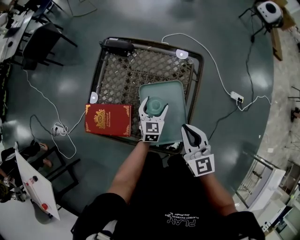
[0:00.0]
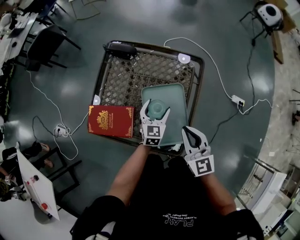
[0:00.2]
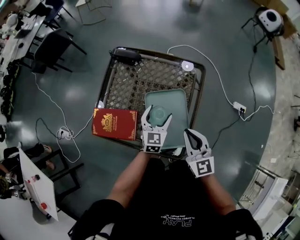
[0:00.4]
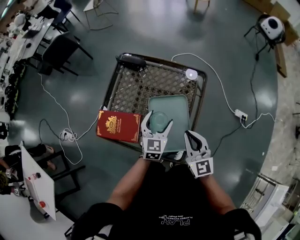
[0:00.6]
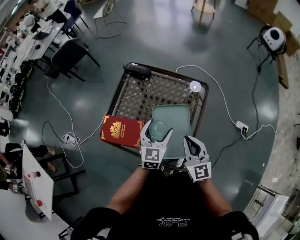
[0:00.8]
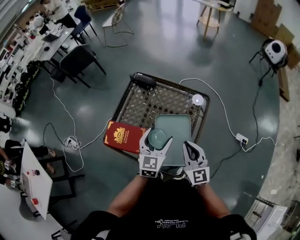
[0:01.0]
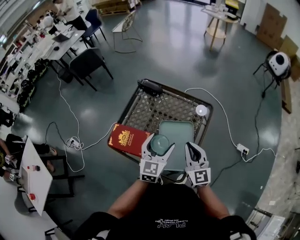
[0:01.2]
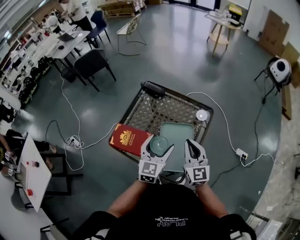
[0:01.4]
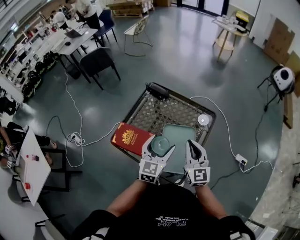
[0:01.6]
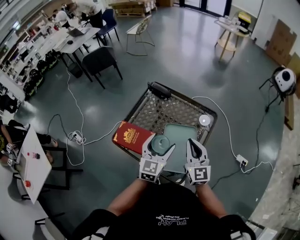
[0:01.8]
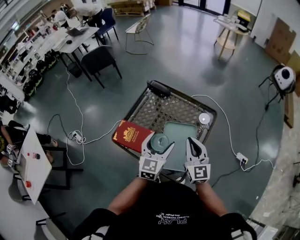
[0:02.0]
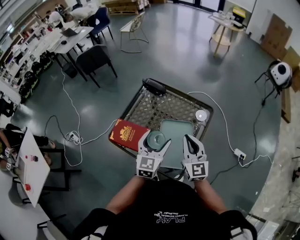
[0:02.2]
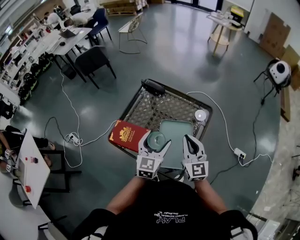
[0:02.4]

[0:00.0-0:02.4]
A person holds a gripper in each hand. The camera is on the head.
0:00.0 to 0:01.2: The left gripper moves upward, roughly 25 cm; the right gripper goes about 5 cm upward.
0:01.2 to 0:02.4: The grippers move only a little.

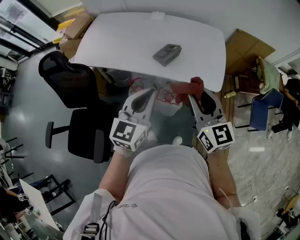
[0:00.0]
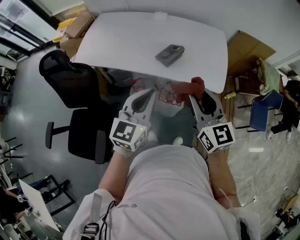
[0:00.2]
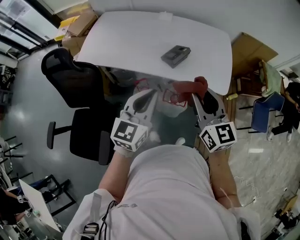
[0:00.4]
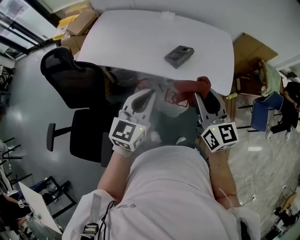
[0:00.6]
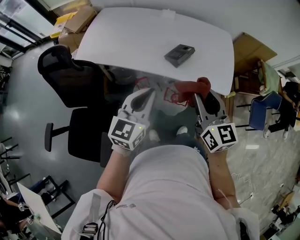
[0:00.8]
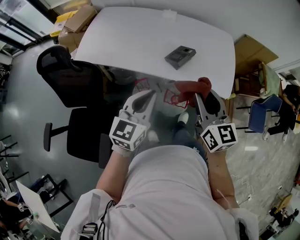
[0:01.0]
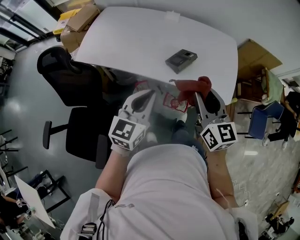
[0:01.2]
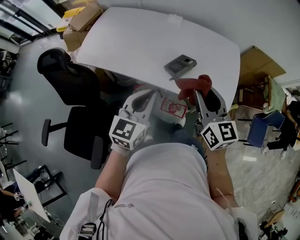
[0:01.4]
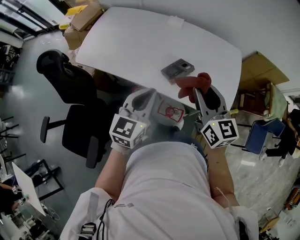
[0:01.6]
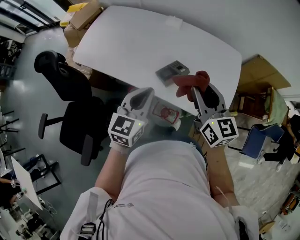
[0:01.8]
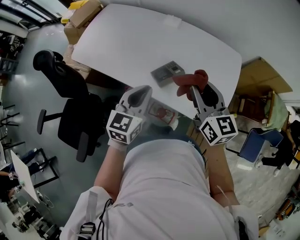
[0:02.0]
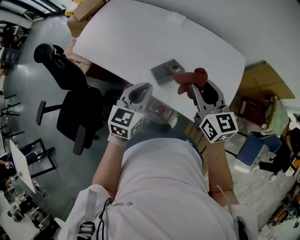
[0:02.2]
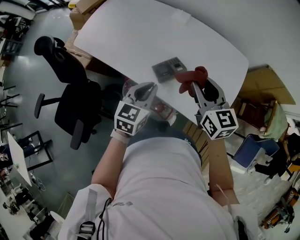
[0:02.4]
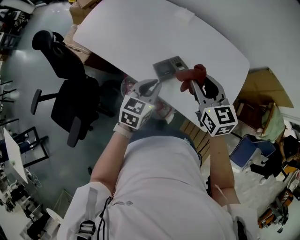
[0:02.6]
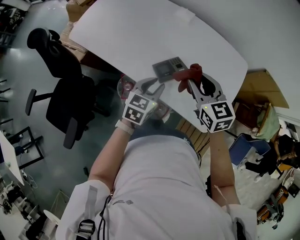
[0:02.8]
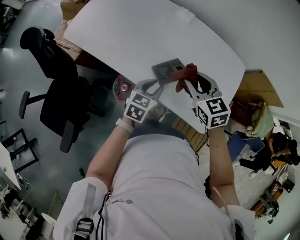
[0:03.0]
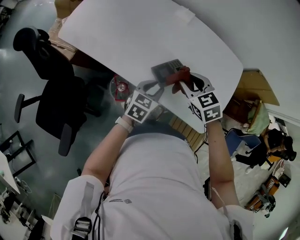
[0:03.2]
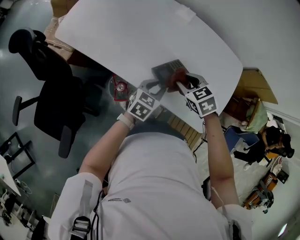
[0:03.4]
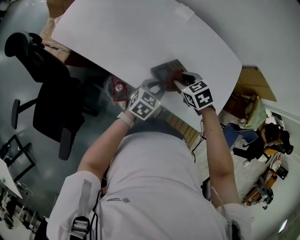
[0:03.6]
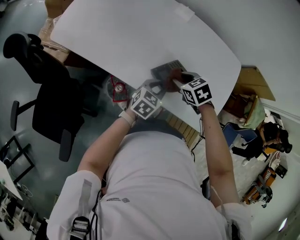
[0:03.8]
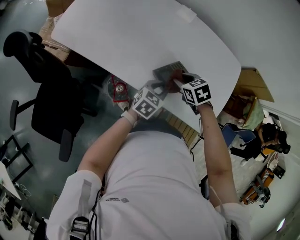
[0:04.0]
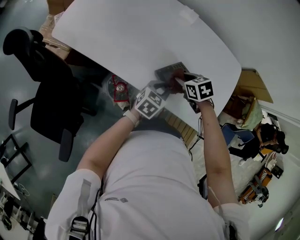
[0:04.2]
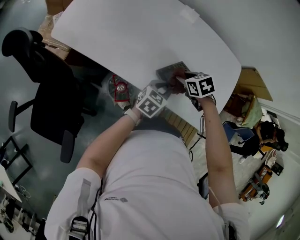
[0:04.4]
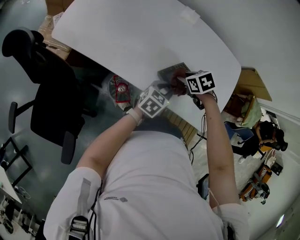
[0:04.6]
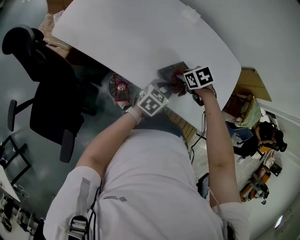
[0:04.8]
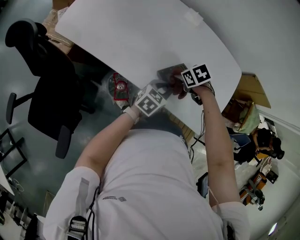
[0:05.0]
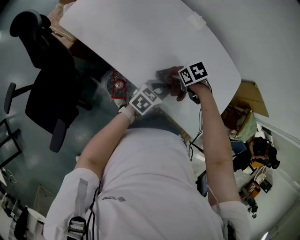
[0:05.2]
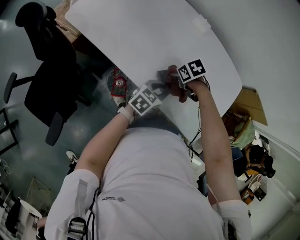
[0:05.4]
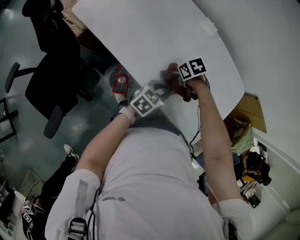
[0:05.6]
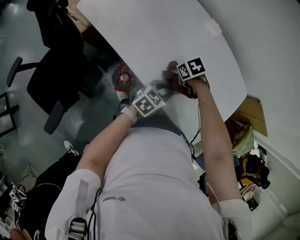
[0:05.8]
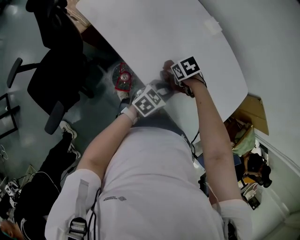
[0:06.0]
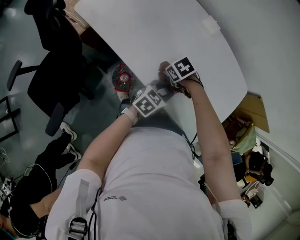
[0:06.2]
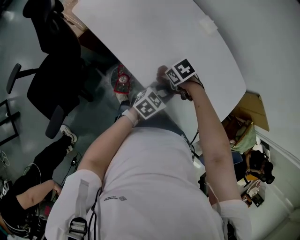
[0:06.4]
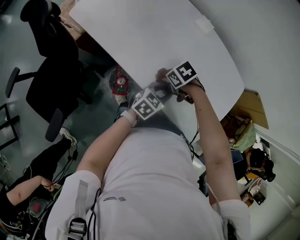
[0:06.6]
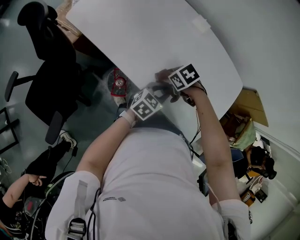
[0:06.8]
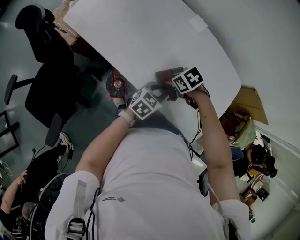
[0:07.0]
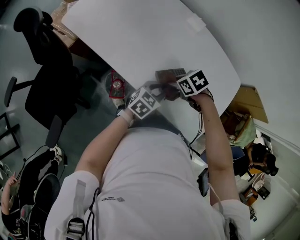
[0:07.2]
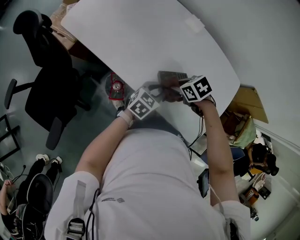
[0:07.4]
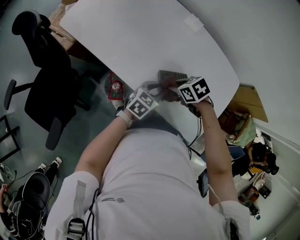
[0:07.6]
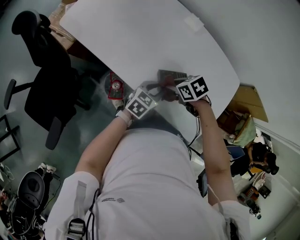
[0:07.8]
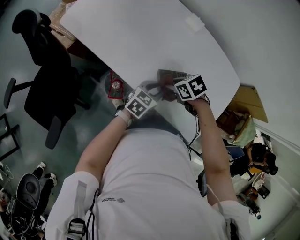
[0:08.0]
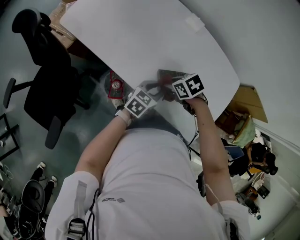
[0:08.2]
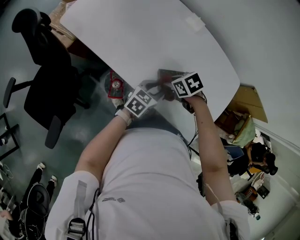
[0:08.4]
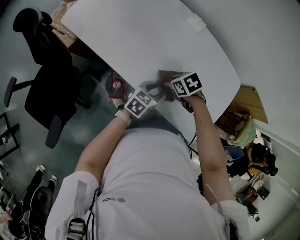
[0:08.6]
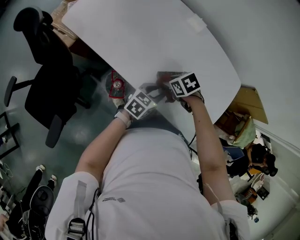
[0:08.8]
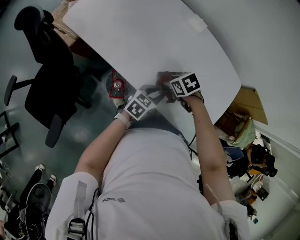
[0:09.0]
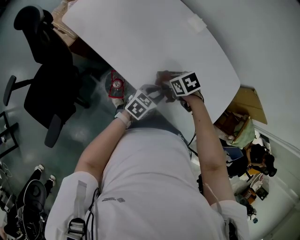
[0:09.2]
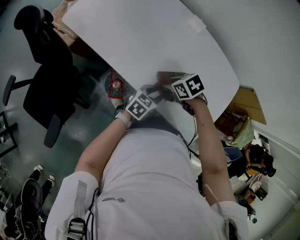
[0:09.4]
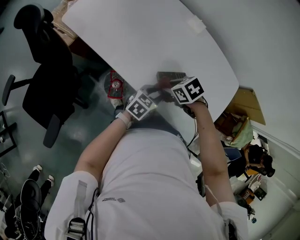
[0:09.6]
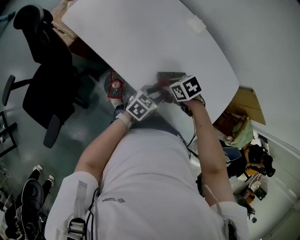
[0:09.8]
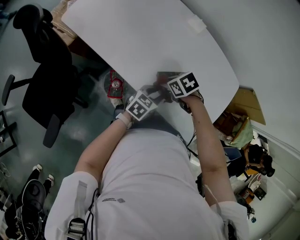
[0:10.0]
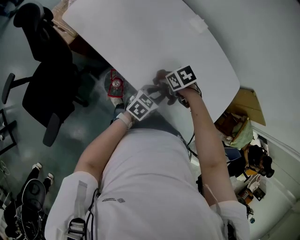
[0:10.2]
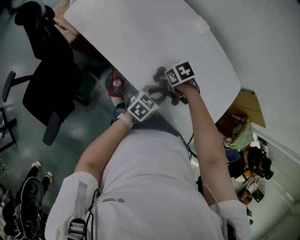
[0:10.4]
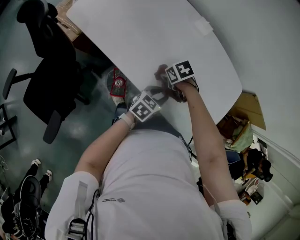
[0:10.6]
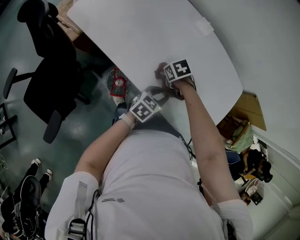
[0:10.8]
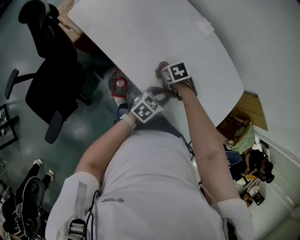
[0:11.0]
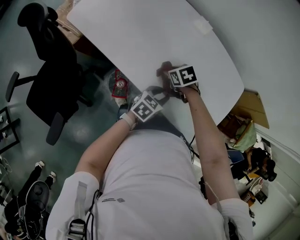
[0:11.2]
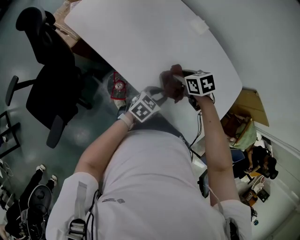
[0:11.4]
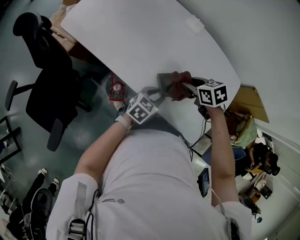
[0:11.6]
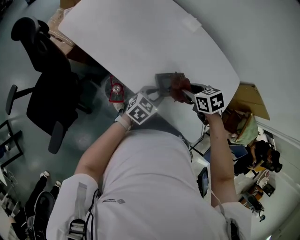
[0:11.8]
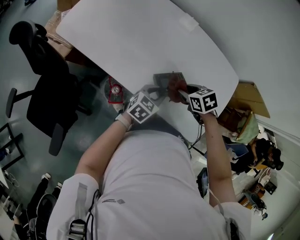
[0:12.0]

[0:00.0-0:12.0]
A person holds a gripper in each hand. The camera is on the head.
0:00.0 to 0:01.6: Both grippers move forward, roughly 15 cm.
0:01.6 to 0:03.0: The left gripper goes approximately 20 cm downward, forward and to the right, swivels roughly 20 degrees, and opens up; the right gripper travels forward and downward by roughly 15 cm, and changes its angle by about 40 degrees.
0:03.0 to 0:04.4: The right gripper heads downward, covering some 15 cm, and points its fingers roughly 30 degrees further downward; the left gripper shifts some 5 cm downward.
0:04.4 to 0:06.0: The right gripper ends up about 10 cm from where it was, and changes its angle by some 30 degrees.
0:06.0 to 0:07.6: The right gripper changes place by some 10 cm.
0:07.6 to 0:09.0: The grippers make only small movements.
0:09.0 to 0:10.4: The grippers stay close to where they were, moving slightly.
0:10.4 to 0:12.0: The right gripper ends up about 15 cm from where it was.

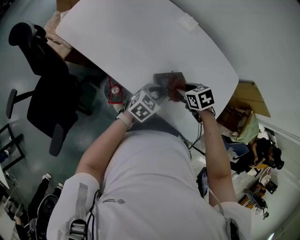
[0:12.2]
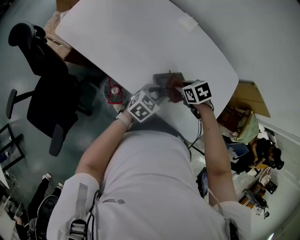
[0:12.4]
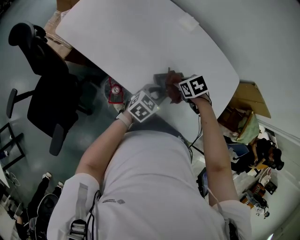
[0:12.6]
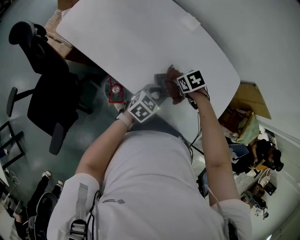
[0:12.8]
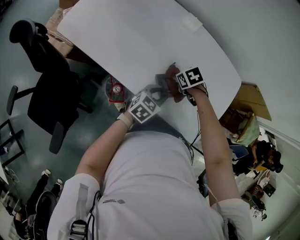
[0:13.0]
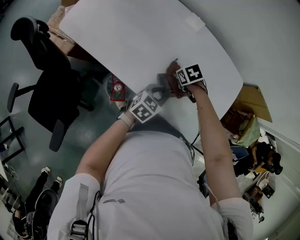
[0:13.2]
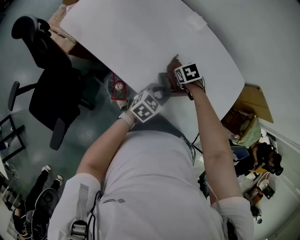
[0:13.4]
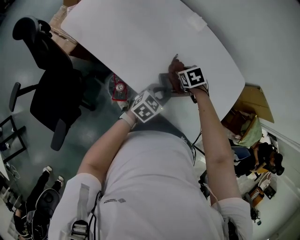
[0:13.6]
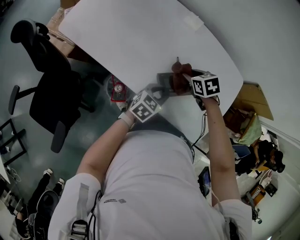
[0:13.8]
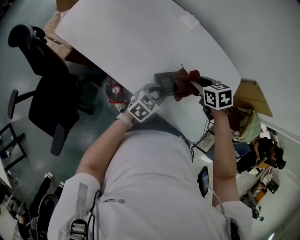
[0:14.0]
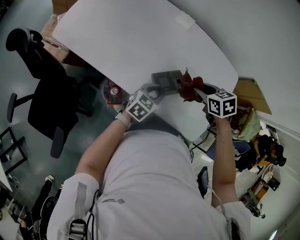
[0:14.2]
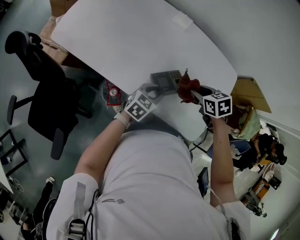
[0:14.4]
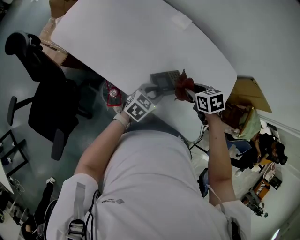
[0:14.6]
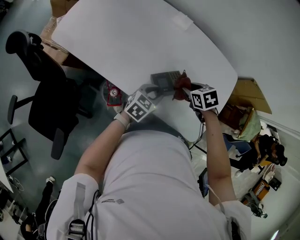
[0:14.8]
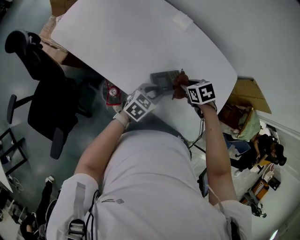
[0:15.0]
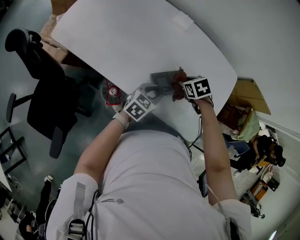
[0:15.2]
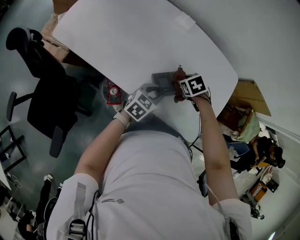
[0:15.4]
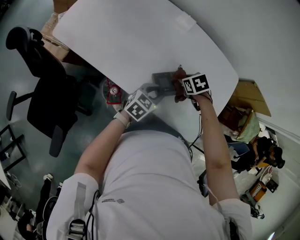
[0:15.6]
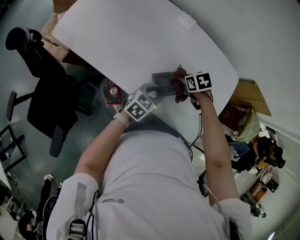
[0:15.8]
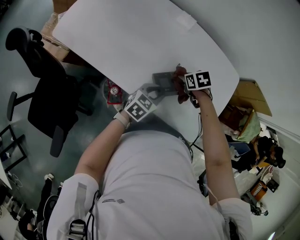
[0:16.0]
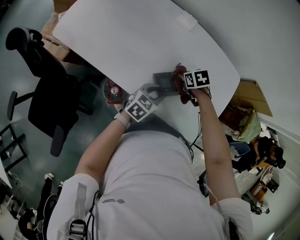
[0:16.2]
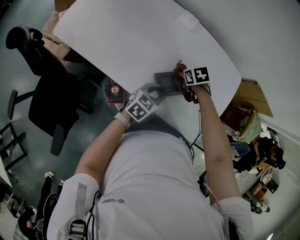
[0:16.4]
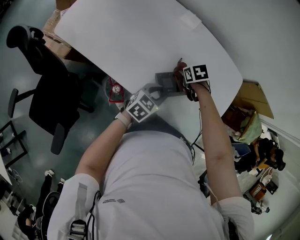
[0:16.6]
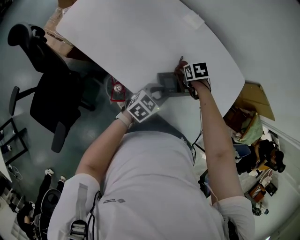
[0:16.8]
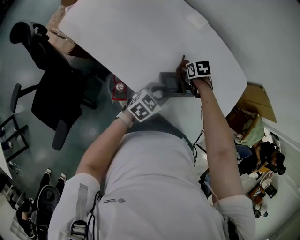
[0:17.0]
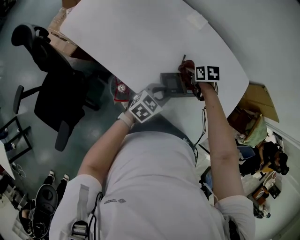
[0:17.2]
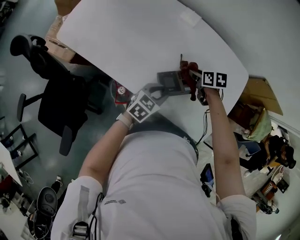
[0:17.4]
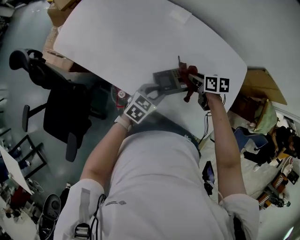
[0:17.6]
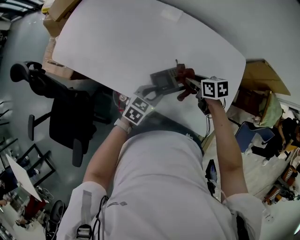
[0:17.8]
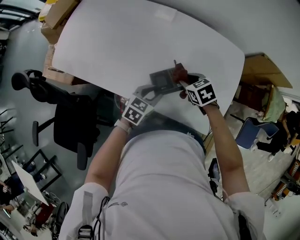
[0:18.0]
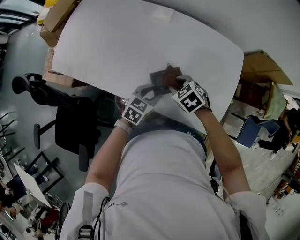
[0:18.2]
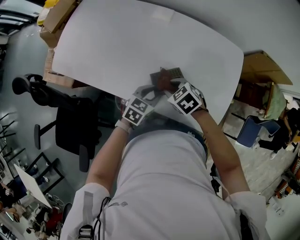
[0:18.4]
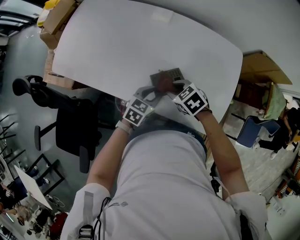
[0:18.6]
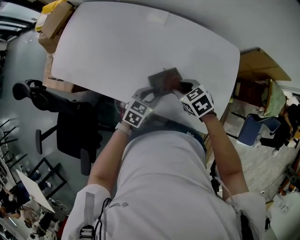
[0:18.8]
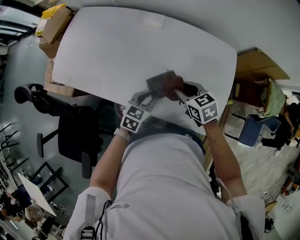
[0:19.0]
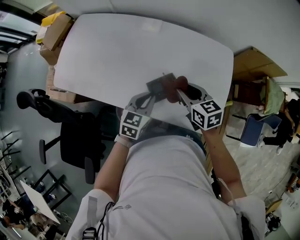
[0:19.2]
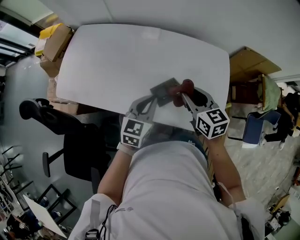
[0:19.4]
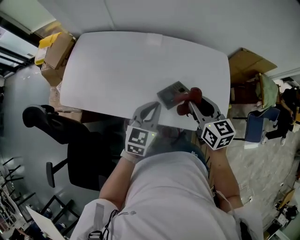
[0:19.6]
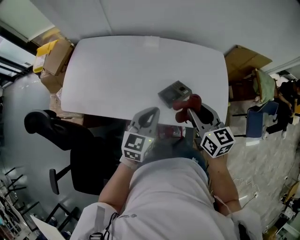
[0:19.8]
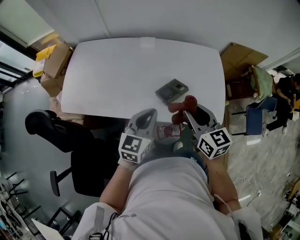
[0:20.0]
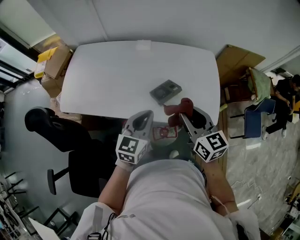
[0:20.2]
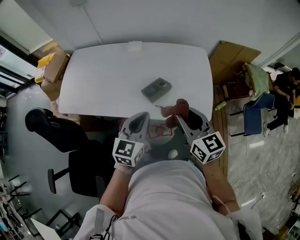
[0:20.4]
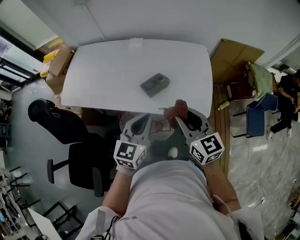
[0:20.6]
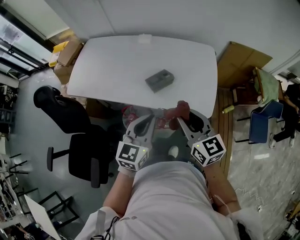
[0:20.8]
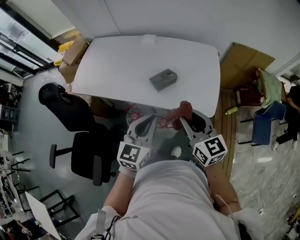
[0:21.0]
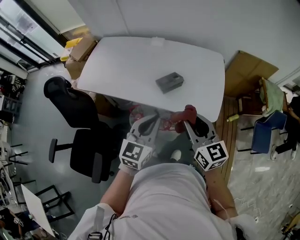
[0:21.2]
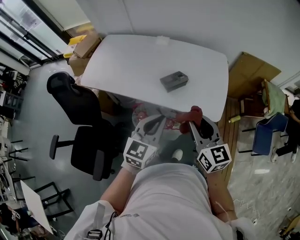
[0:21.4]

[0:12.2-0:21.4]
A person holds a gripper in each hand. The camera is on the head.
0:12.2 to 0:13.8: The right gripper goes downward and returns, about 5 cm each way.
0:13.8 to 0:15.2: The right gripper moves some 5 cm upward and comes back.
0:15.2 to 0:16.8: The right gripper moves some 10 cm.
0:16.8 to 0:18.4: The right gripper ends up roughly 15 cm from where it was, and swivels some 20 degrees.
0:18.4 to 0:19.8: The left gripper moves upward and to the left, some 20 cm, changes its angle by roughly 20 degrees, and closes its fingers. The right gripper is displaced upward by approximately 20 cm, and tilts its fingers about 40 degrees upward.
0:19.8 to 0:21.4: The left gripper travels backward and to the right by approximately 20 cm. The right gripper travels backward by about 20 cm.
